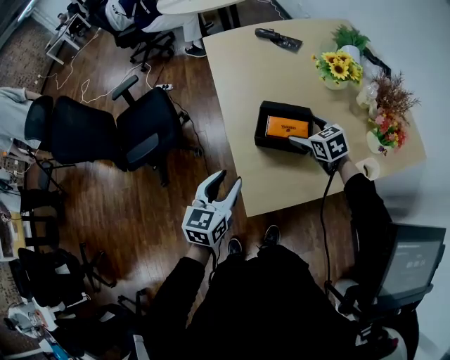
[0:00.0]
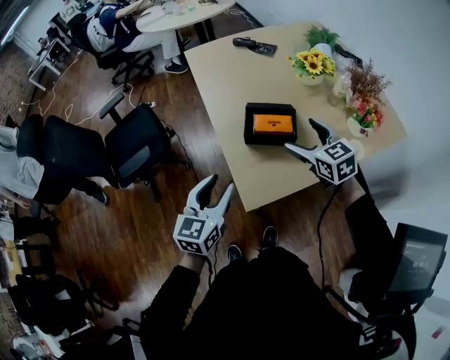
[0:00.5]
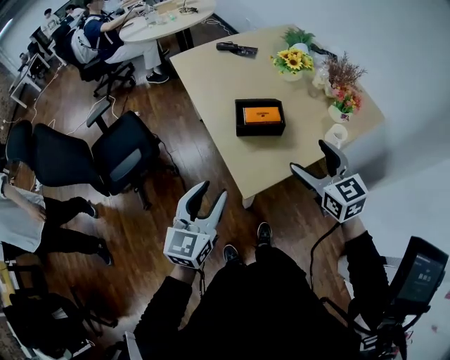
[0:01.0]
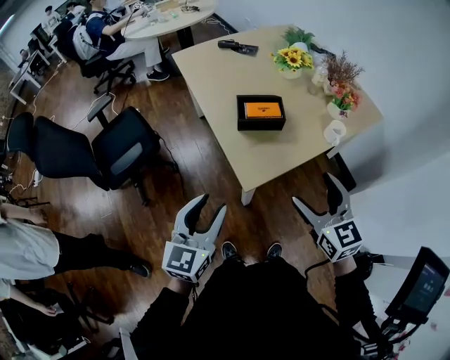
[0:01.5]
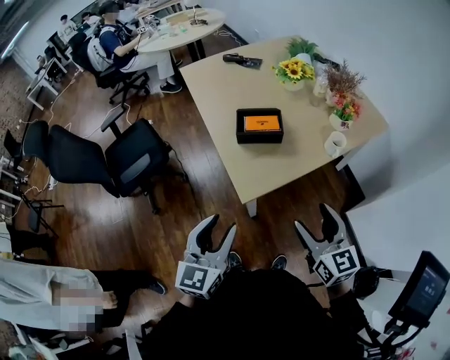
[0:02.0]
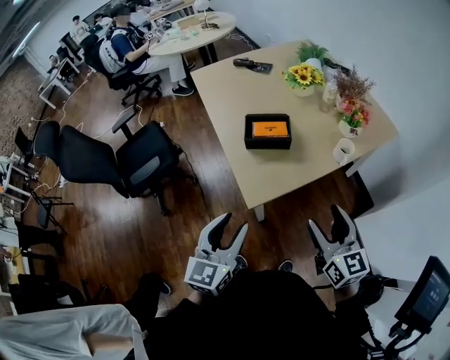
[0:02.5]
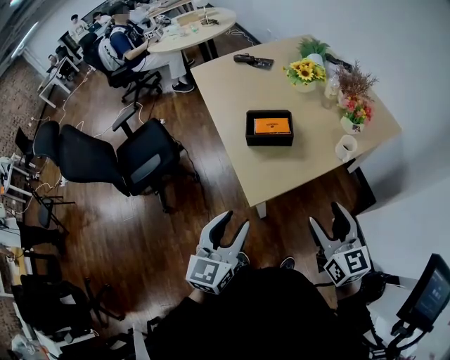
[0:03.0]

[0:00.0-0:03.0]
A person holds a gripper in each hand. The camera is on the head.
0:00.0 to 0:01.5: The right gripper shifts roughly 40 cm backward and upward, and rotates about 30 degrees, while the left gripper is displaced backward and upward by approximately 20 cm.
0:01.5 to 0:03.0: The grippers both shift to the right by about 10 cm.

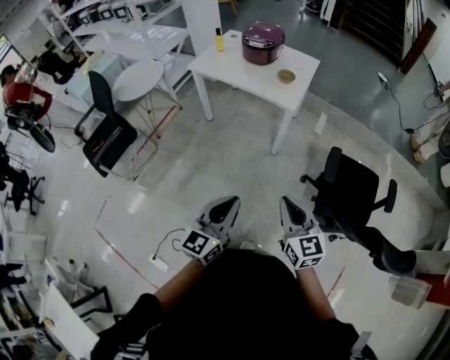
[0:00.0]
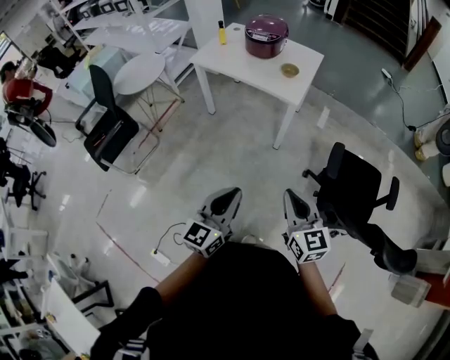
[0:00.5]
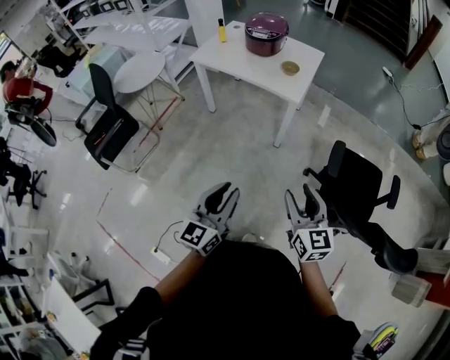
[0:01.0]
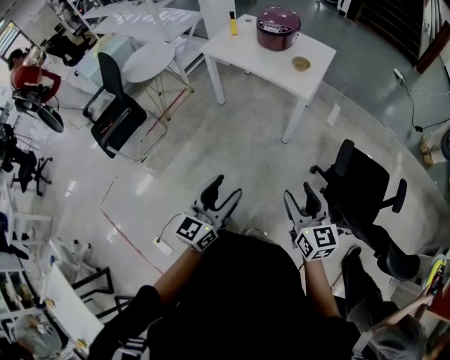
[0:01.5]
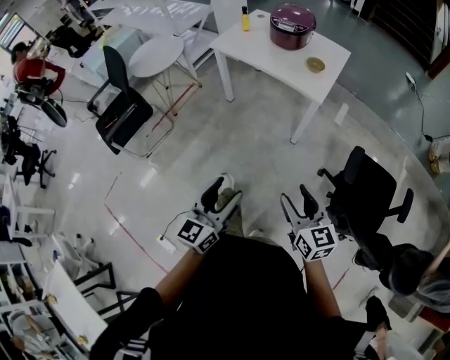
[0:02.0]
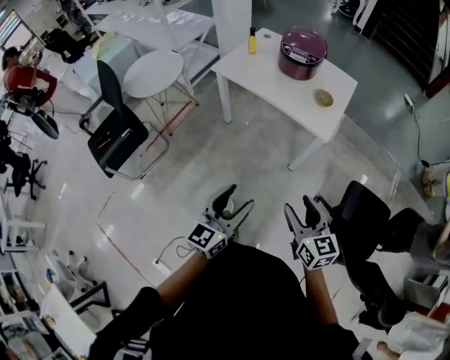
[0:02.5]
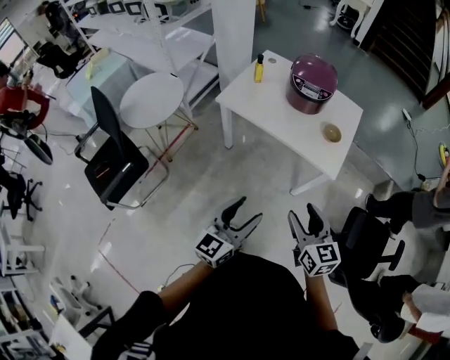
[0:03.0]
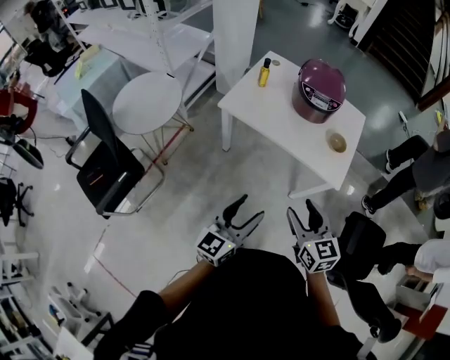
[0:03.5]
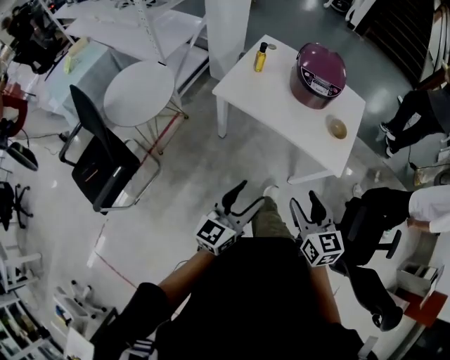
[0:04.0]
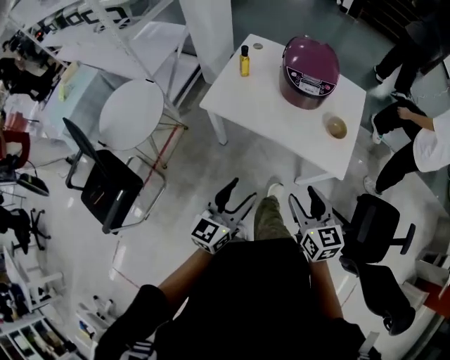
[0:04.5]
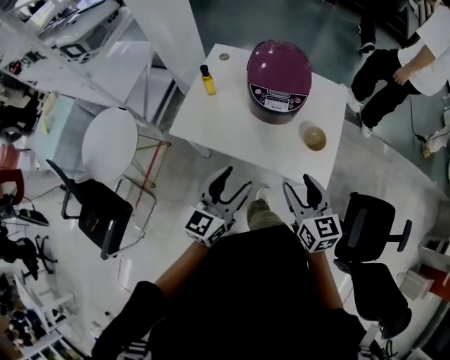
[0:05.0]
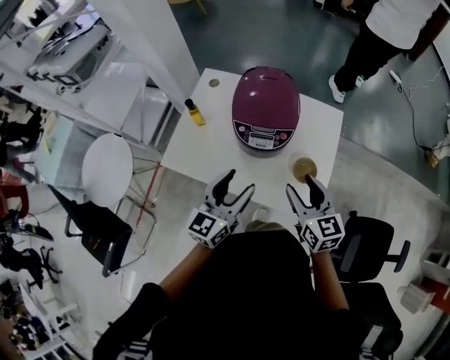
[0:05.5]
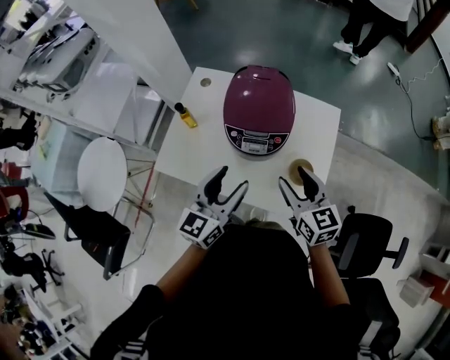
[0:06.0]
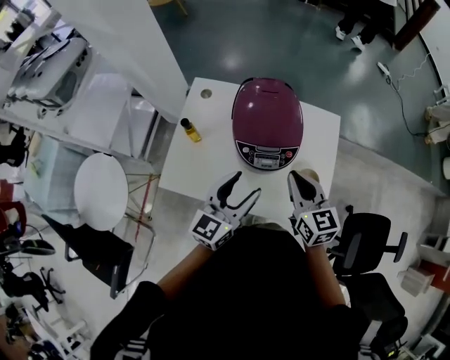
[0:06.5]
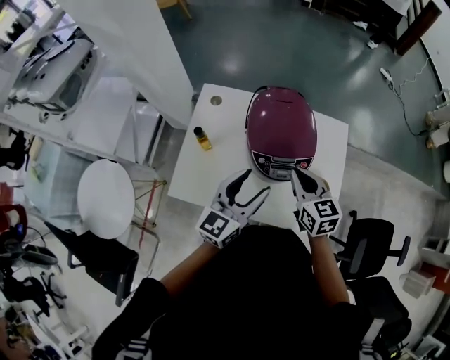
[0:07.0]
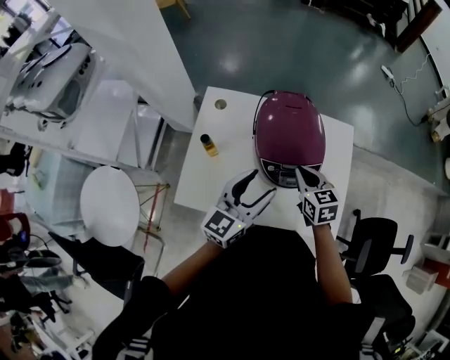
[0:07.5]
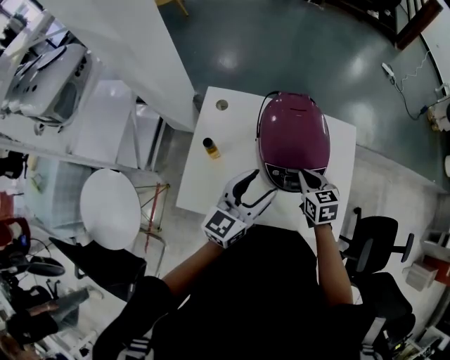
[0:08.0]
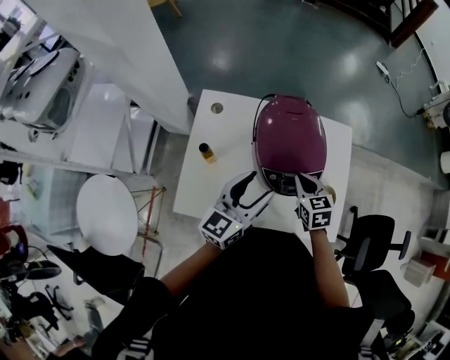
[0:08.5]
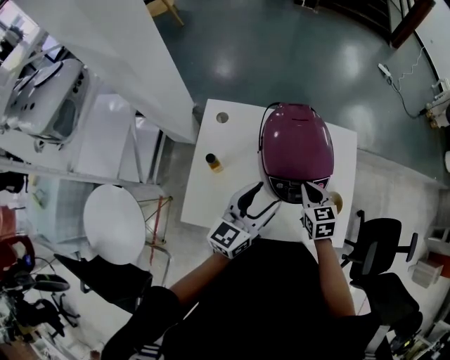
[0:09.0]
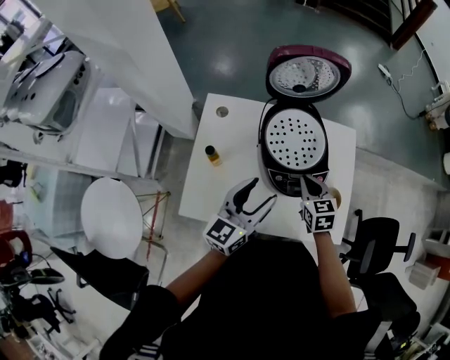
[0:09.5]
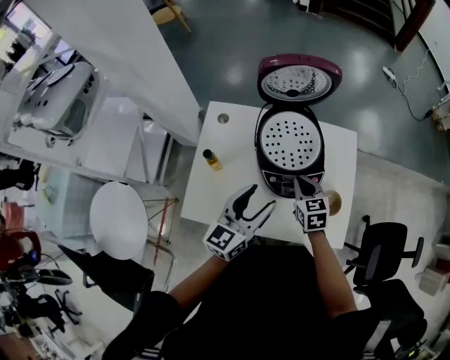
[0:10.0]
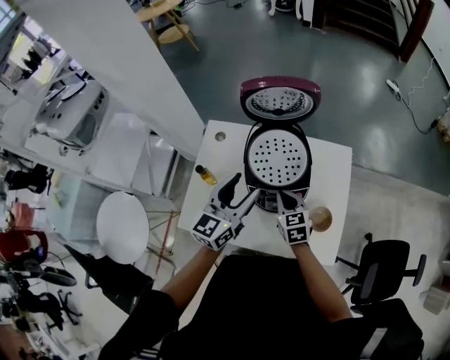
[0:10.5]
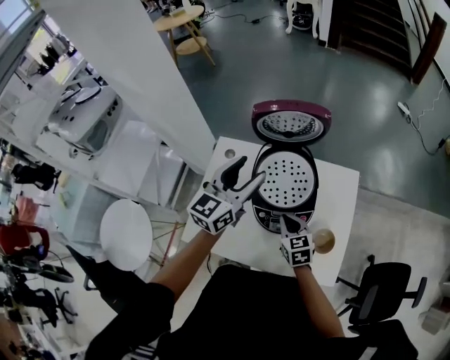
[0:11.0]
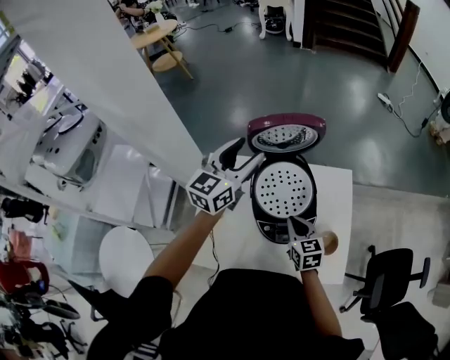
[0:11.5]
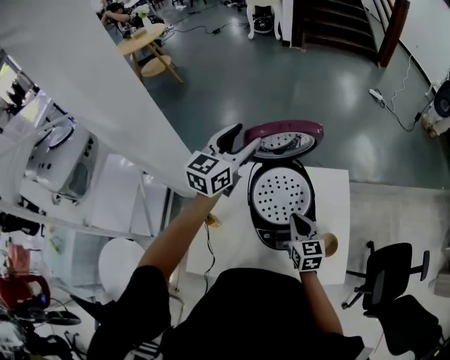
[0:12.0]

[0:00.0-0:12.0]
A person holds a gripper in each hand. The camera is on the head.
0:00.0 to 0:02.0: The right gripper ends up approximately 5 cm from where it was, and opens up, while the left gripper travels to the left by about 5 cm, and opens.
0:02.0 to 0:04.0: The pair of grippers is taken forward and to the left, about 40 cm.
0:04.0 to 0:06.0: The pair of grippers is taken forward, approximately 40 cm.
0:06.0 to 0:08.0: The left gripper goes some 15 cm forward and to the left. Meanwhile the right gripper heads forward, downward and to the left, covering roughly 20 cm, swivels some 20 degrees, and closes up.
0:08.0 to 0:10.0: The grippers stay close to where they were, moving slightly.
0:10.0 to 0:12.0: The left gripper is displaced forward and upward by approximately 35 cm; the right gripper is displaced upward and forward by some 10 cm.

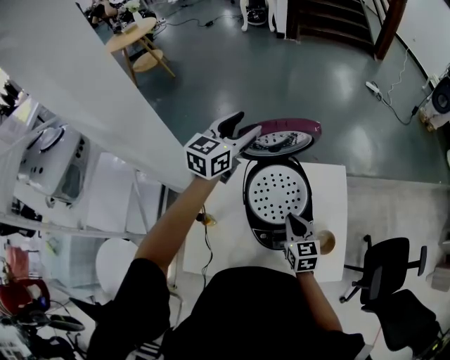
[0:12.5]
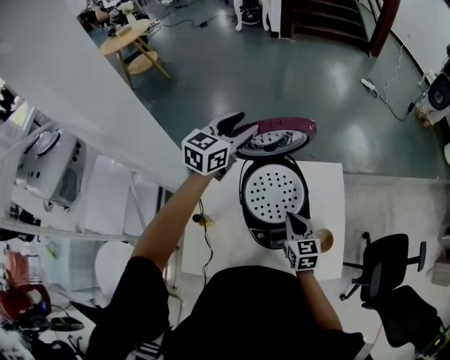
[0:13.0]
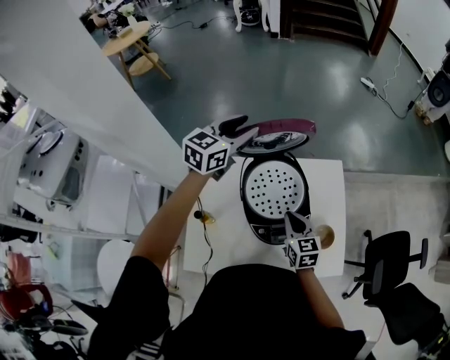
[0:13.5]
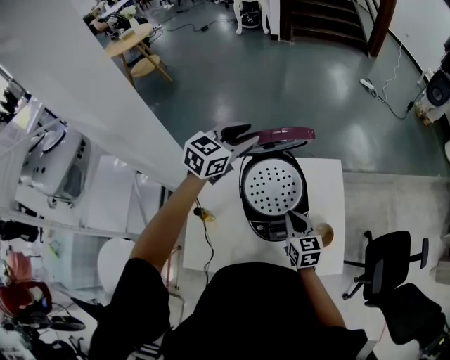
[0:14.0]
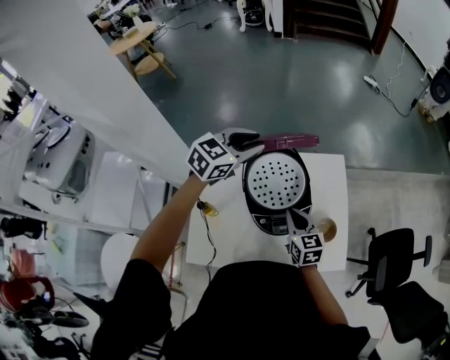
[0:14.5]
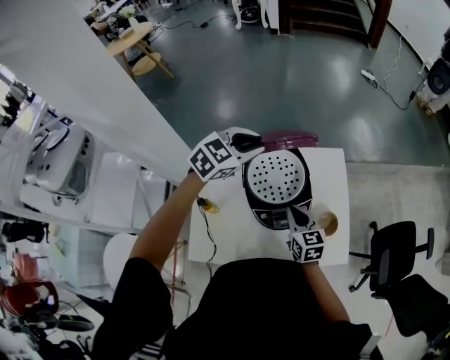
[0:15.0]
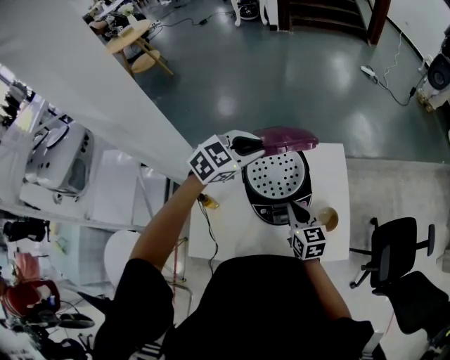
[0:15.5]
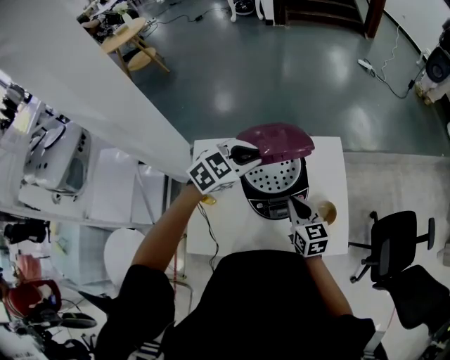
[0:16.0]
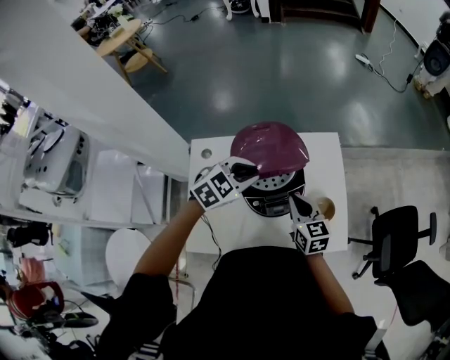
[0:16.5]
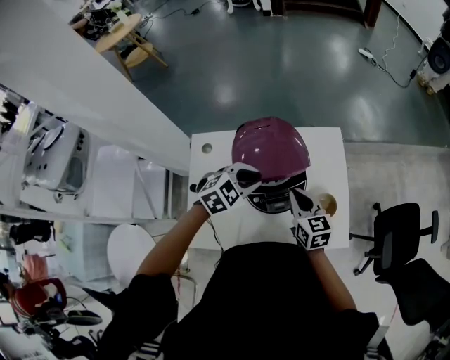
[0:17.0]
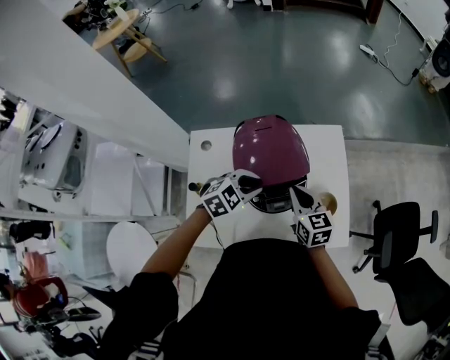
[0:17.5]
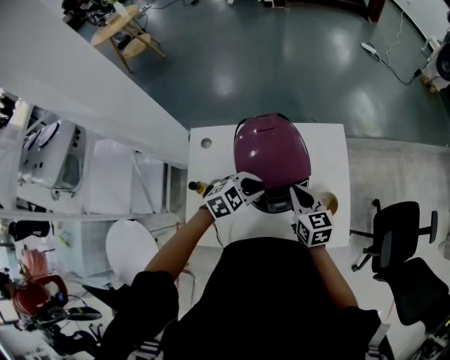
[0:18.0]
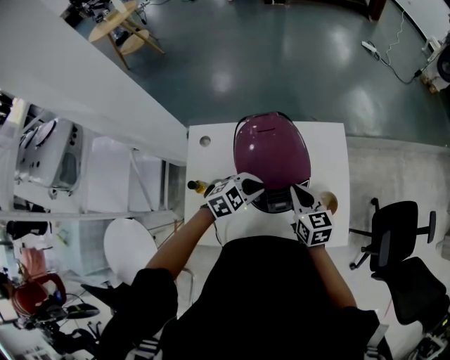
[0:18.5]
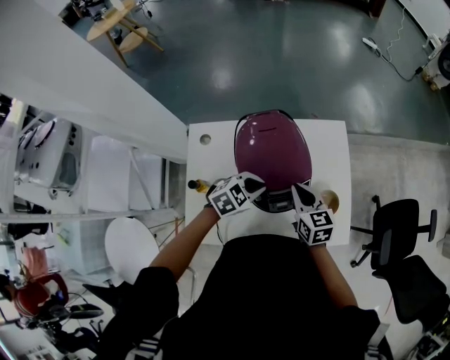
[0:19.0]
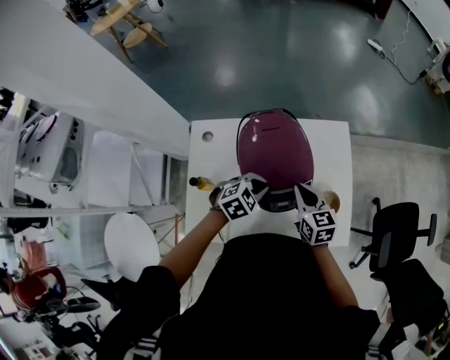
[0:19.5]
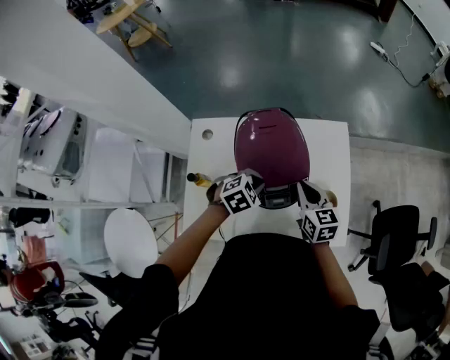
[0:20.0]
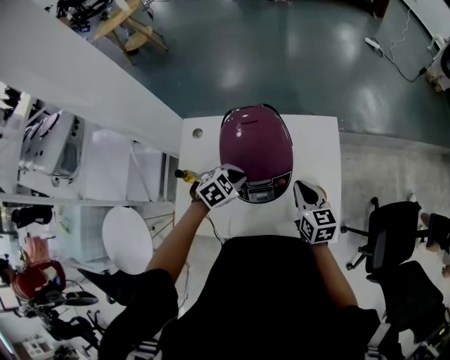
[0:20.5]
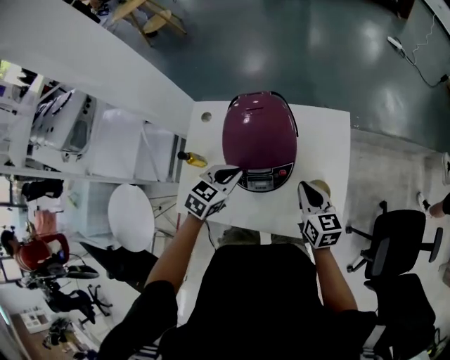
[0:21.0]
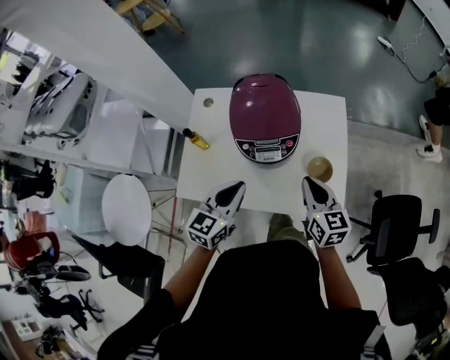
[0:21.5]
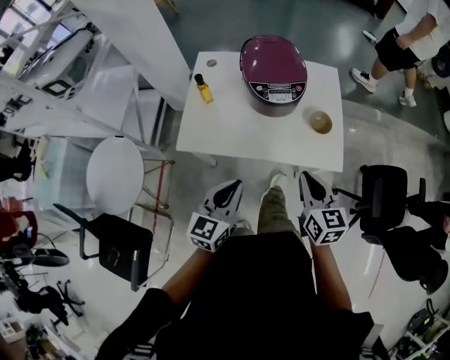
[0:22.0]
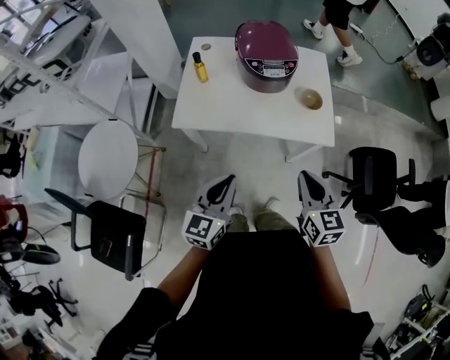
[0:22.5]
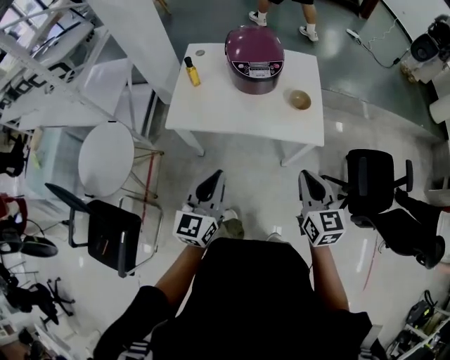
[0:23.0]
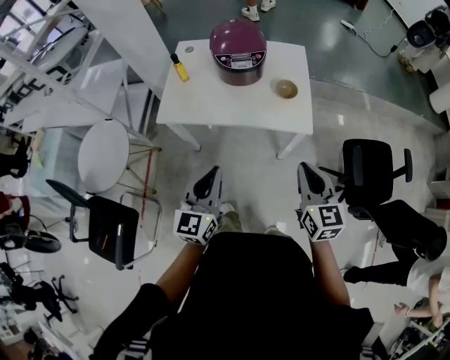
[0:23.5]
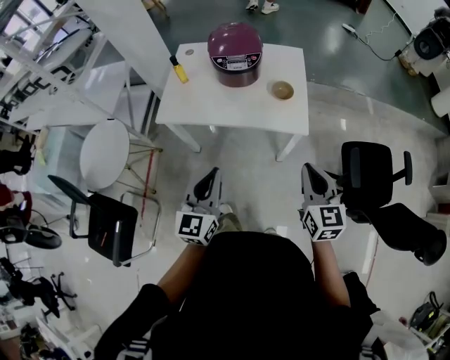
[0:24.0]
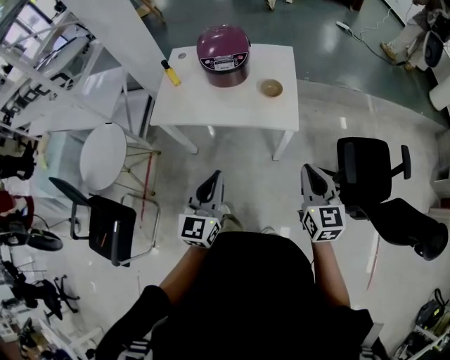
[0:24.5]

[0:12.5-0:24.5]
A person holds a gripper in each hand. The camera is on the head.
0:12.5 to 0:14.5: The left gripper shifts some 10 cm backward and to the right, changes its angle by approximately 30 degrees, and closes up.
0:14.5 to 0:16.5: The left gripper goes some 15 cm backward, downward and to the right, and swivels approximately 20 degrees.
0:16.5 to 0:18.5: The left gripper heads downward, covering about 10 cm.
0:18.5 to 0:20.5: The left gripper changes its angle by roughly 20 degrees, while the right gripper shifts approximately 10 cm to the right.
0:20.5 to 0:22.5: The two grippers travel together, backward, roughly 50 cm. The left gripper angles its fingers upward, by some 50 degrees.
0:22.5 to 0:24.5: The left gripper moves to the right and backward, some 20 cm. The right gripper is displaced to the right by about 25 cm.
